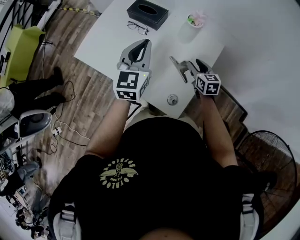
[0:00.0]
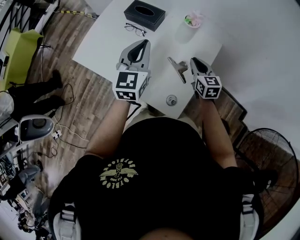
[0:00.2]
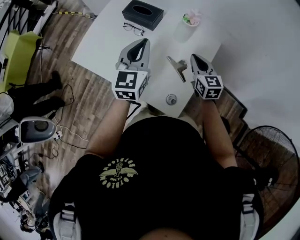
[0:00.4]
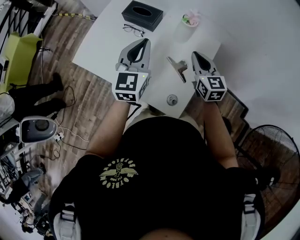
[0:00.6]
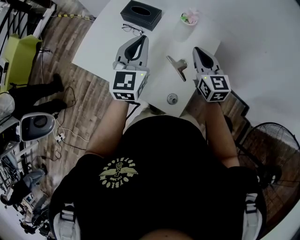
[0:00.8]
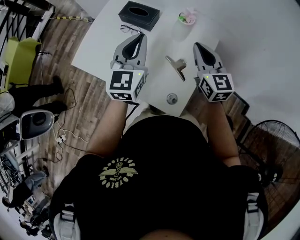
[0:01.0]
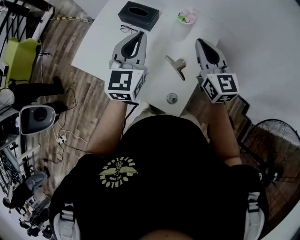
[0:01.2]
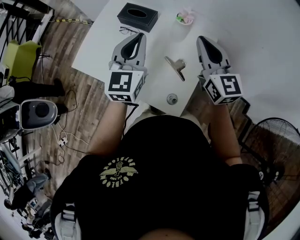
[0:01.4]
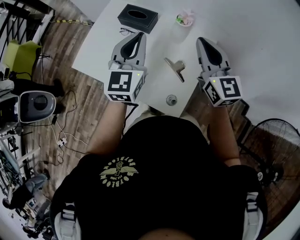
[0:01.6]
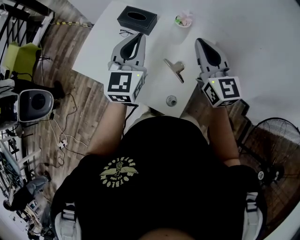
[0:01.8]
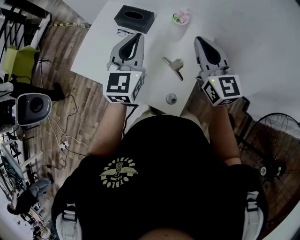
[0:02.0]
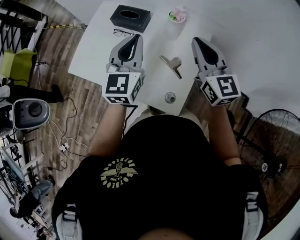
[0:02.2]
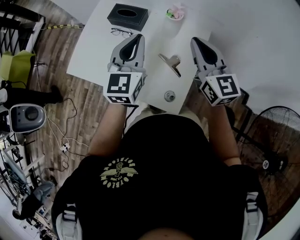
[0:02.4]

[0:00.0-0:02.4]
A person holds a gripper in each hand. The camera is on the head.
0.0 to 1.2 s: The right gripper goes roughly 25 cm upward, changes its angle by about 30 degrees, and closes, while the left gripper shifts approximately 5 cm upward.
1.2 to 2.4 s: The grippers make only small movements.

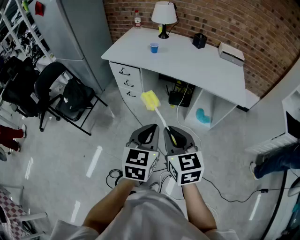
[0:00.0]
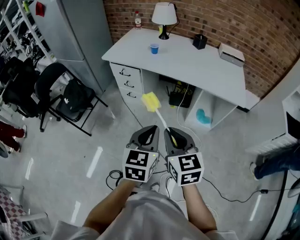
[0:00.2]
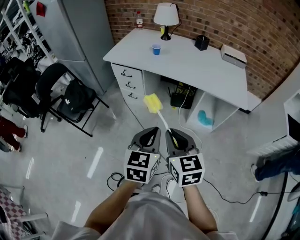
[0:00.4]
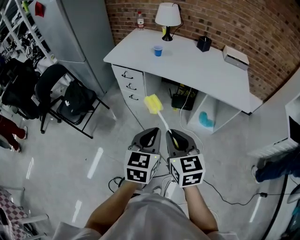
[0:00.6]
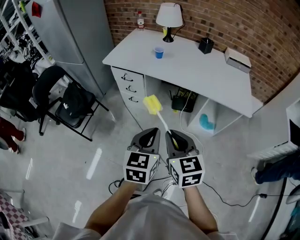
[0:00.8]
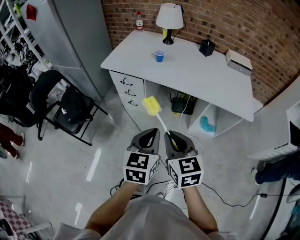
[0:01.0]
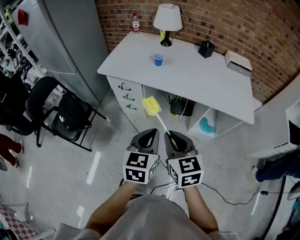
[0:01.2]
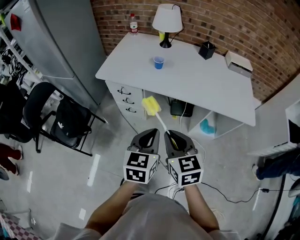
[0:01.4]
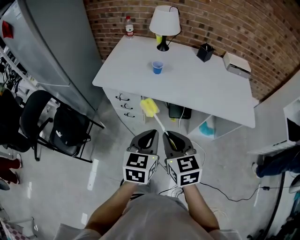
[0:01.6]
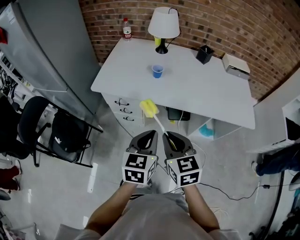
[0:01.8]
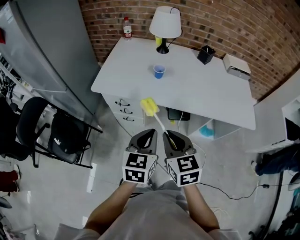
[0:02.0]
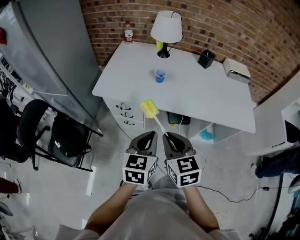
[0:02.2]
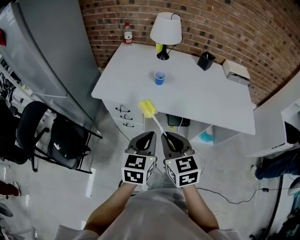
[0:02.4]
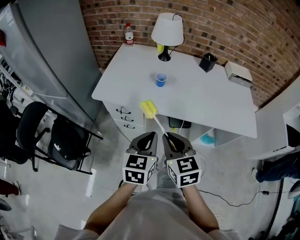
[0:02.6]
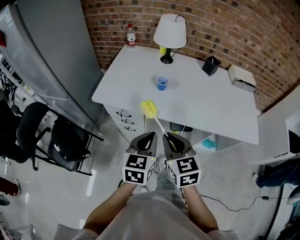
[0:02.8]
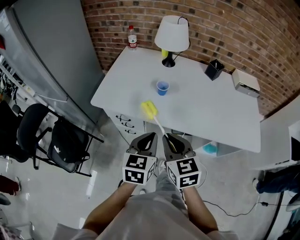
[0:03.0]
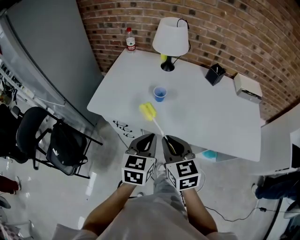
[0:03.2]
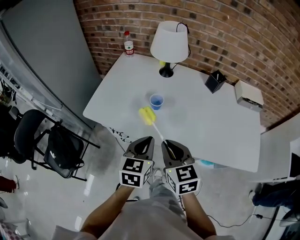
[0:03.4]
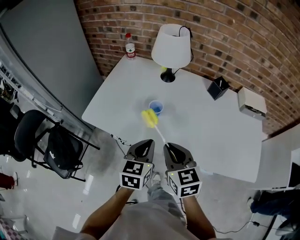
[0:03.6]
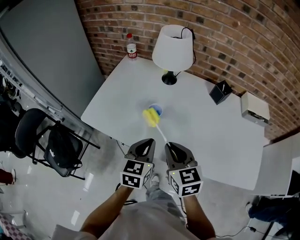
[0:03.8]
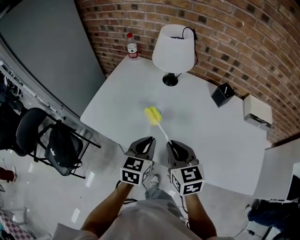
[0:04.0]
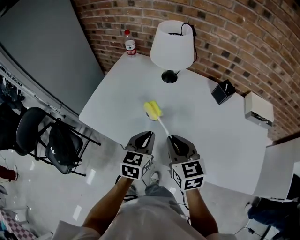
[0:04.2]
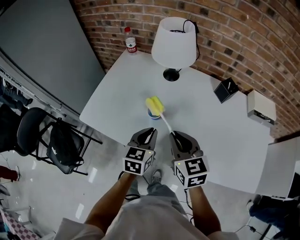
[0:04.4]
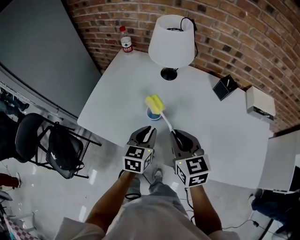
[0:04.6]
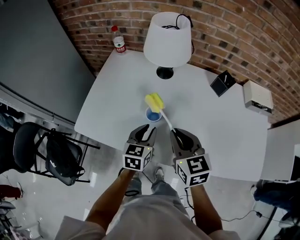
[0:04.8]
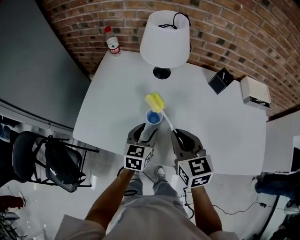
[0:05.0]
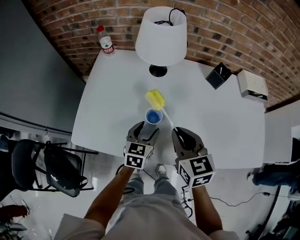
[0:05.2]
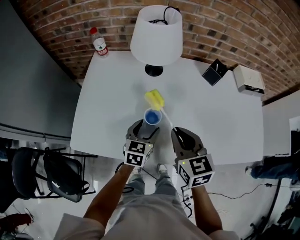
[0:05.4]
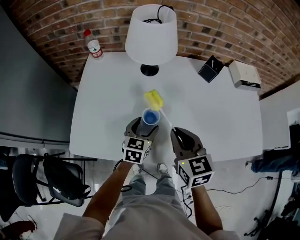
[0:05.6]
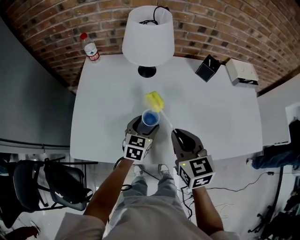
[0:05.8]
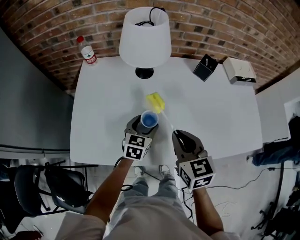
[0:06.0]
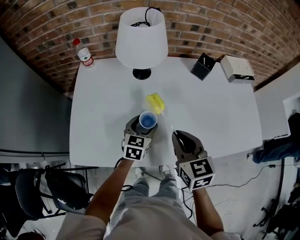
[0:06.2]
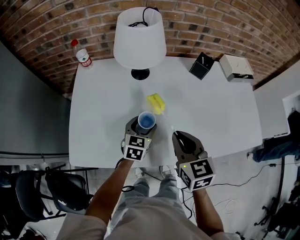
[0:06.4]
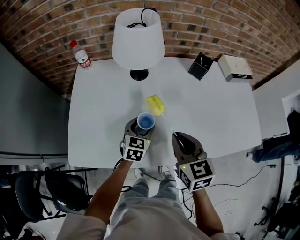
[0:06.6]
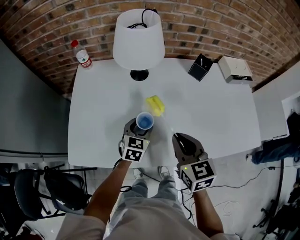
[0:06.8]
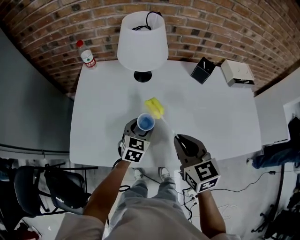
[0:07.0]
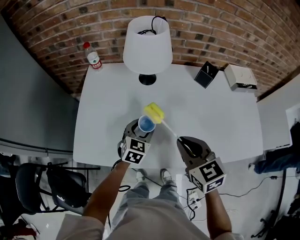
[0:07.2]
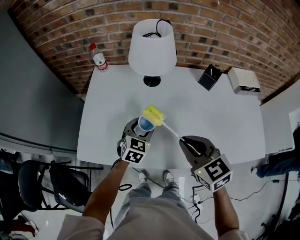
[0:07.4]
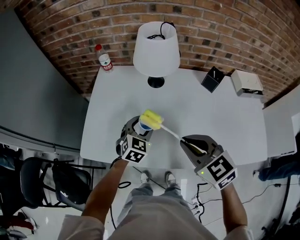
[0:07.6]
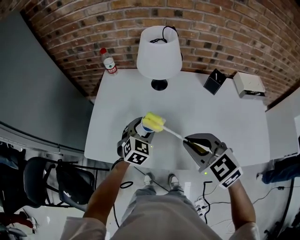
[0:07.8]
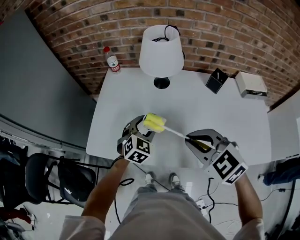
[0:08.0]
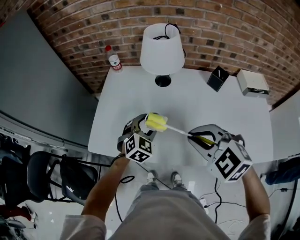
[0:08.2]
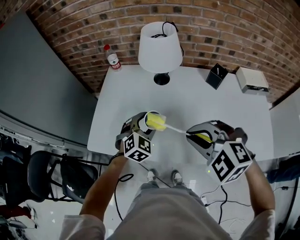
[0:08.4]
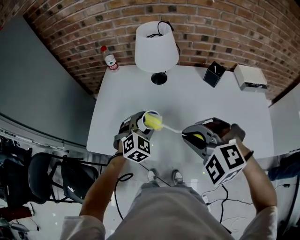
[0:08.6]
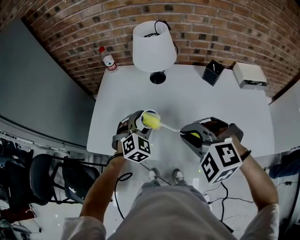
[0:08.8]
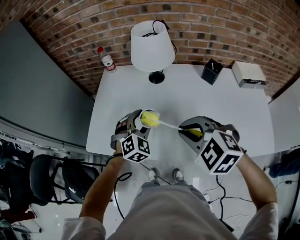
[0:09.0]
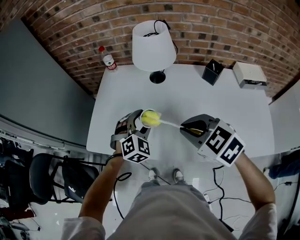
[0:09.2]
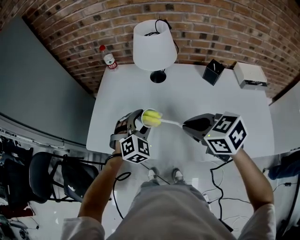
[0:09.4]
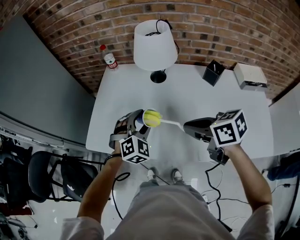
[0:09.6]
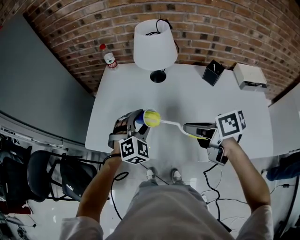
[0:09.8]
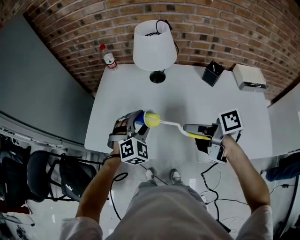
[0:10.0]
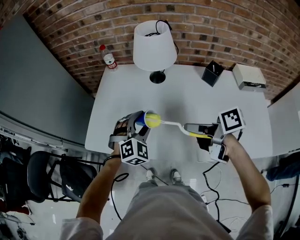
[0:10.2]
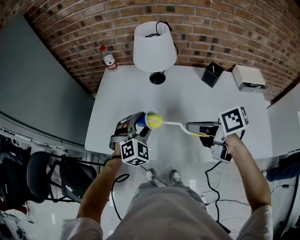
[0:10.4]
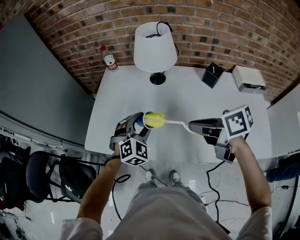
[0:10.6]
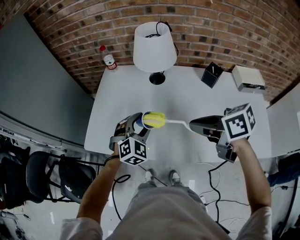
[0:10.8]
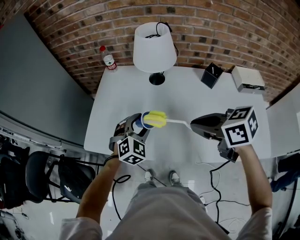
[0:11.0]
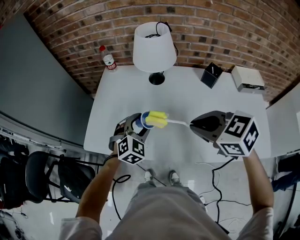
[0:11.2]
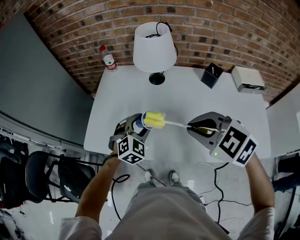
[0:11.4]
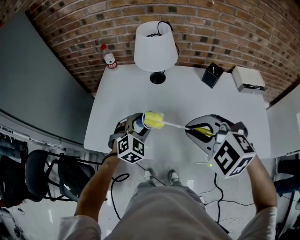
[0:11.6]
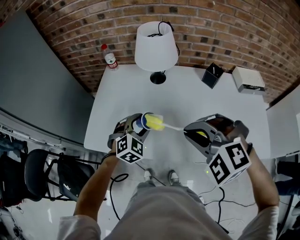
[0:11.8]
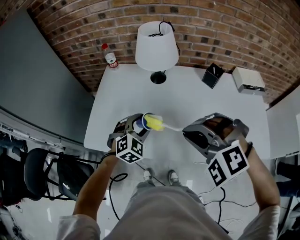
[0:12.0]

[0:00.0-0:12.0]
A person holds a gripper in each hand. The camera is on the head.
0.0 to 1.6 s: Both grippers travel together forward and to the left, roughly 25 cm.
1.6 to 3.0 s: The two grippers go approximately 15 cm forward.
3.0 to 4.4 s: The right gripper heads forward and to the right, covering about 25 cm, while the left gripper moves forward, about 20 cm.
4.4 to 6.0 s: The left gripper changes place by approximately 15 cm, turns by roughly 30 degrees, and opens its fingers, while the right gripper changes its angle by roughly 30 degrees.
6.0 to 7.6 s: The grippers both shift upward by about 5 cm. The right gripper turns by approximately 30 degrees. Meanwhile the left gripper turns by some 20 degrees.
7.6 to 9.0 s: The right gripper swivels roughly 30 degrees; the left gripper shifts by some 5 cm, and swivels about 30 degrees.
9.0 to 10.4 s: The right gripper twists approximately 80 degrees clockwise, seen from behind.
10.4 to 12.0 s: The right gripper shifts by roughly 10 cm, and rotates around the line of its fingers by roughly 110 degrees, counterclockwise from behind.

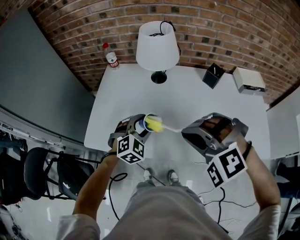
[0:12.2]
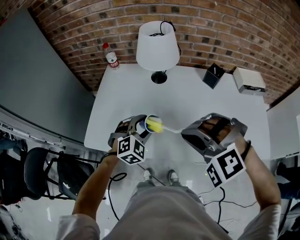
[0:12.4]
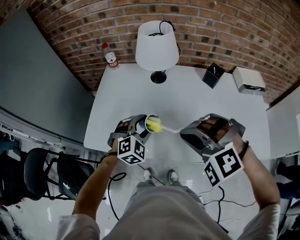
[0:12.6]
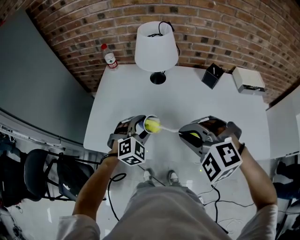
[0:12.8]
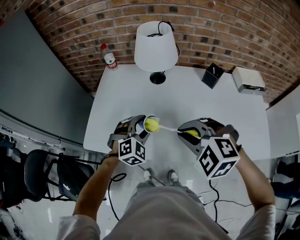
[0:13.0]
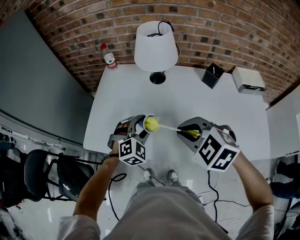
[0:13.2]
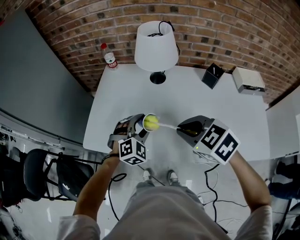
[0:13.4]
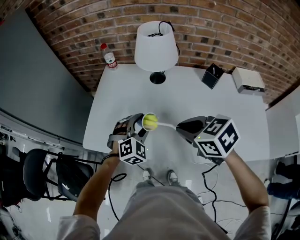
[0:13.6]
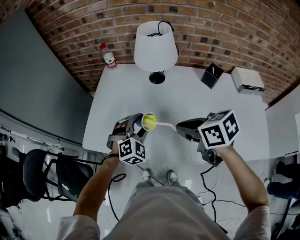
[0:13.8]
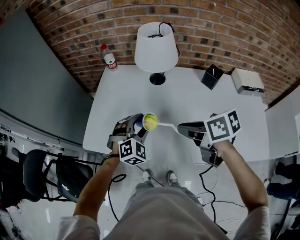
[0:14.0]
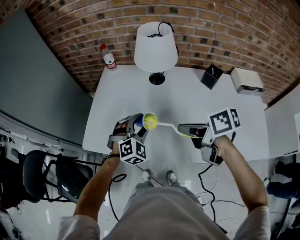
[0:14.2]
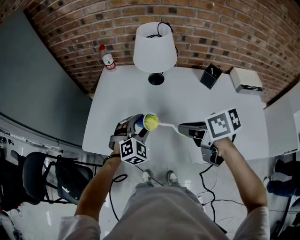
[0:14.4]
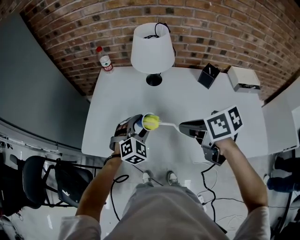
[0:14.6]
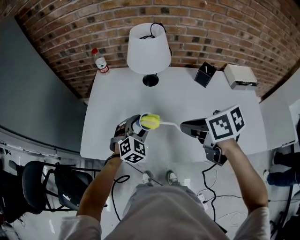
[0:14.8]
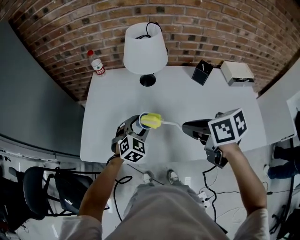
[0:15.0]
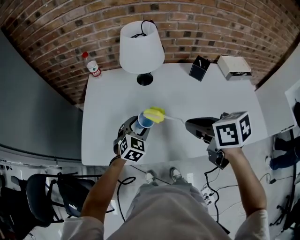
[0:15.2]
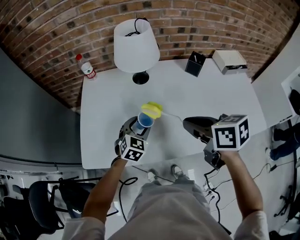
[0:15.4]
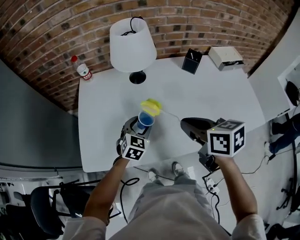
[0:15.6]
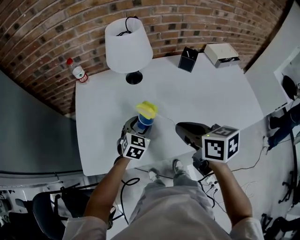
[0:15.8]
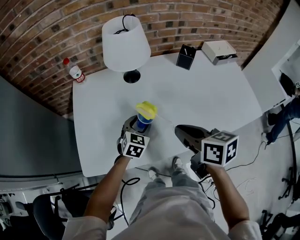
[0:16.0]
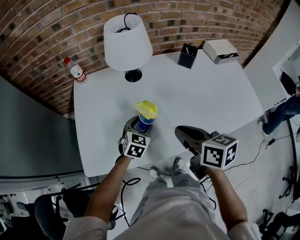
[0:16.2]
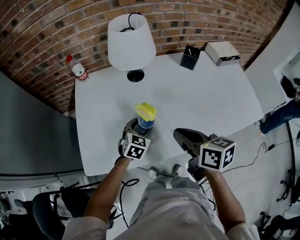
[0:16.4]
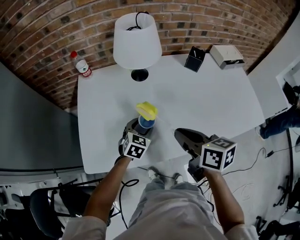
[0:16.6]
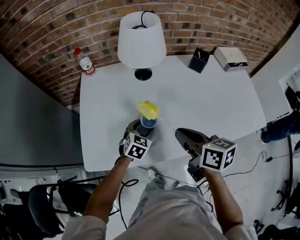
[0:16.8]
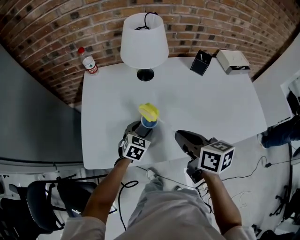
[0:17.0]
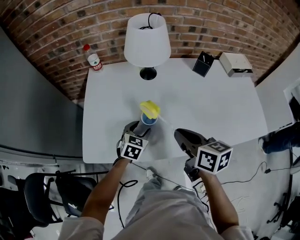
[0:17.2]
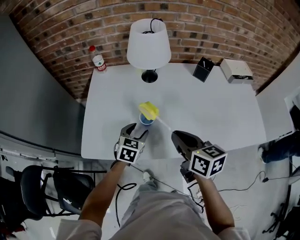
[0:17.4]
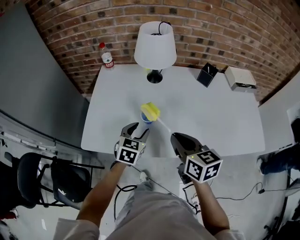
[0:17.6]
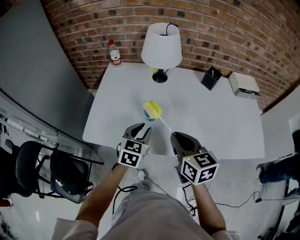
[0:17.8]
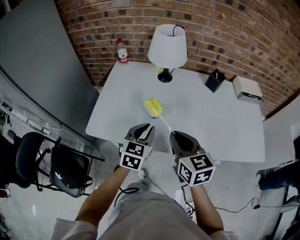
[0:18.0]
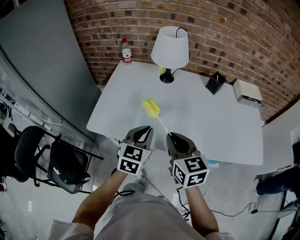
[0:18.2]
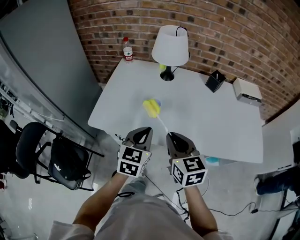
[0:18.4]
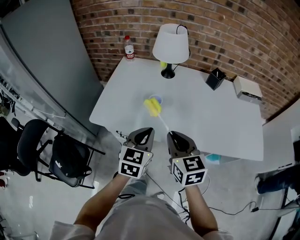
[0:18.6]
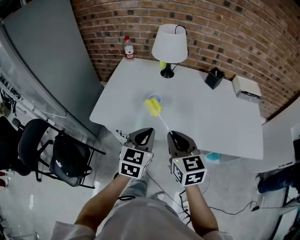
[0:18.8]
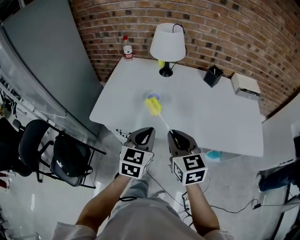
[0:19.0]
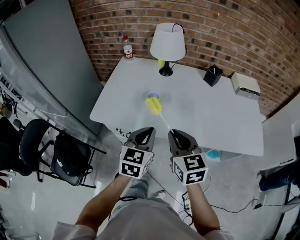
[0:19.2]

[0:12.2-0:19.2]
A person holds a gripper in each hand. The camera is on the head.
12.2 to 13.6 s: The right gripper ends up some 5 cm from where it was, and twists approximately 70 degrees clockwise, seen from behind.
13.6 to 15.0 s: The right gripper swivels roughly 30 degrees.
15.0 to 16.4 s: The left gripper moves downward, some 5 cm, and turns by some 20 degrees. The right gripper heads to the left, covering some 5 cm, and changes its angle by about 30 degrees.
16.4 to 17.8 s: The left gripper goes approximately 15 cm upward and backward, turns by some 20 degrees, and closes its fingers; the right gripper swivels roughly 20 degrees.
17.8 to 19.2 s: The right gripper goes about 10 cm backward. The left gripper moves backward and upward, approximately 15 cm, and closes its fingers.

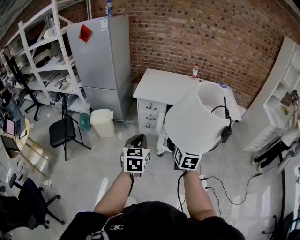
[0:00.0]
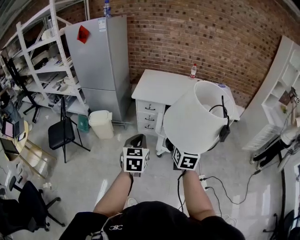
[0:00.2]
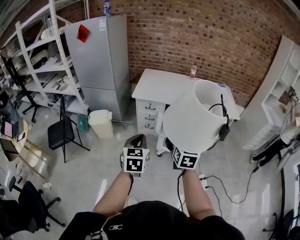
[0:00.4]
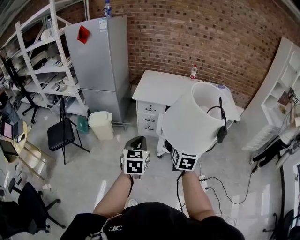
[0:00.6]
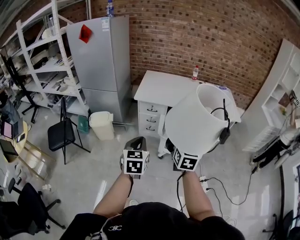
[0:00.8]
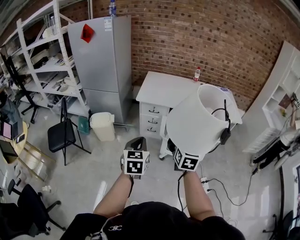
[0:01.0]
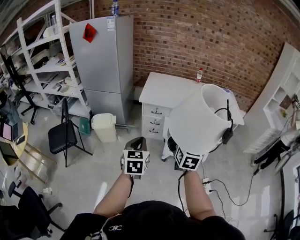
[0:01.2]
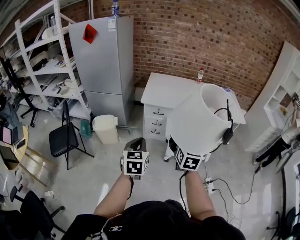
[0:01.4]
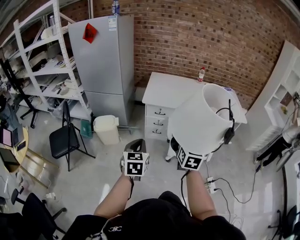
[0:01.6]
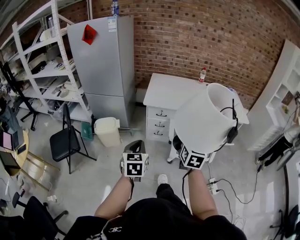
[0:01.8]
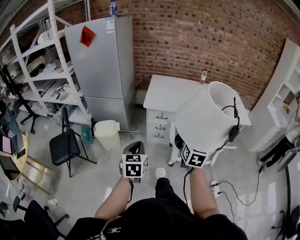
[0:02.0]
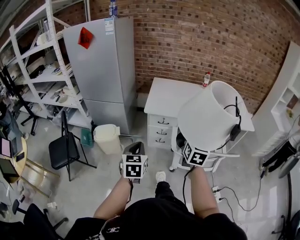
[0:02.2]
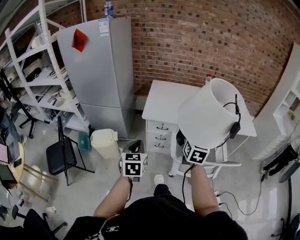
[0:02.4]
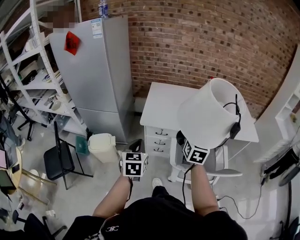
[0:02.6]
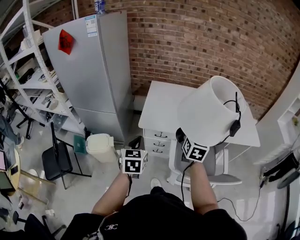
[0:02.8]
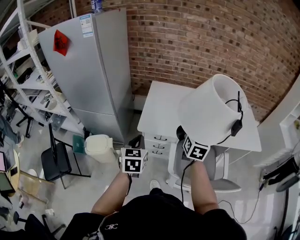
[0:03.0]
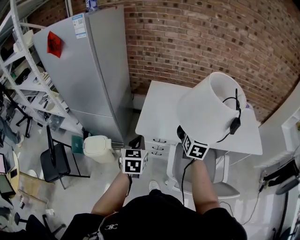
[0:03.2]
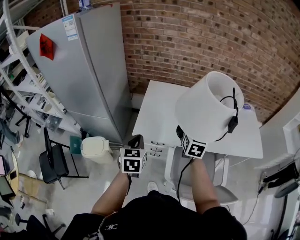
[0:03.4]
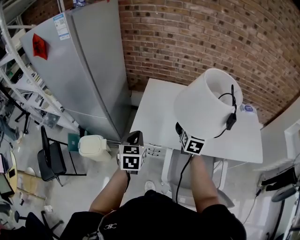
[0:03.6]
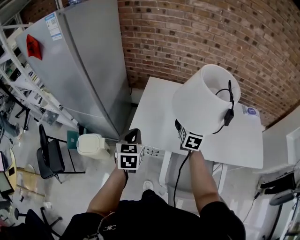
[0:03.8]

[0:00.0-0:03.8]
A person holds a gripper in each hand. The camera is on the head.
0.0 to 1.2 s: The two grippers go about 10 cm to the left.
1.2 to 2.6 s: The grippers both shift forward by some 30 cm.
2.6 to 3.8 s: The two grippers go about 30 cm forward.
